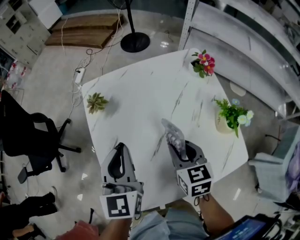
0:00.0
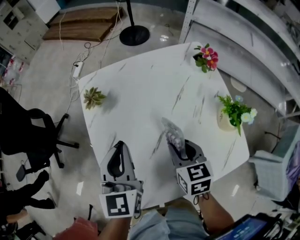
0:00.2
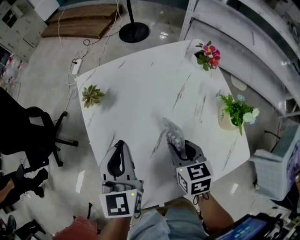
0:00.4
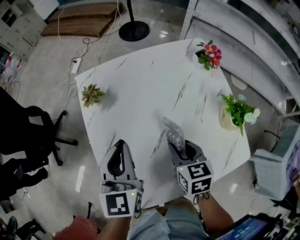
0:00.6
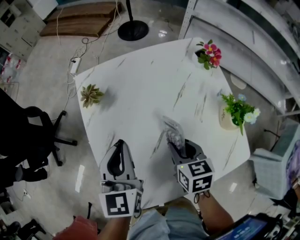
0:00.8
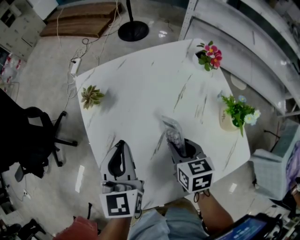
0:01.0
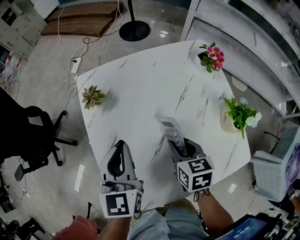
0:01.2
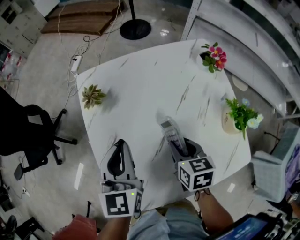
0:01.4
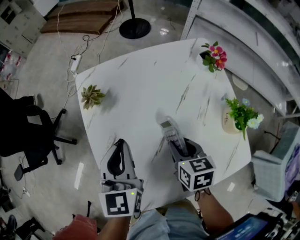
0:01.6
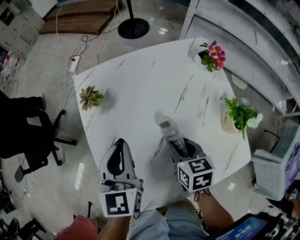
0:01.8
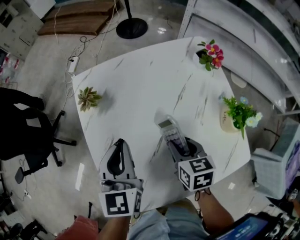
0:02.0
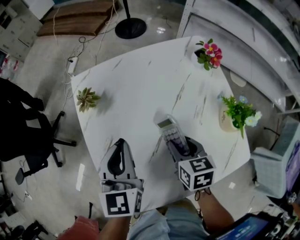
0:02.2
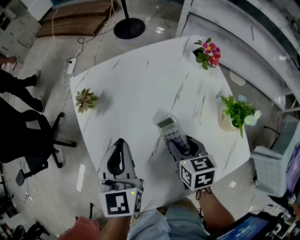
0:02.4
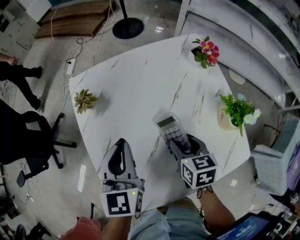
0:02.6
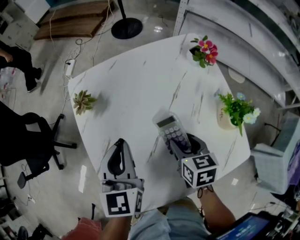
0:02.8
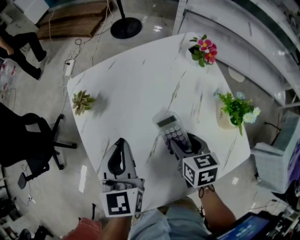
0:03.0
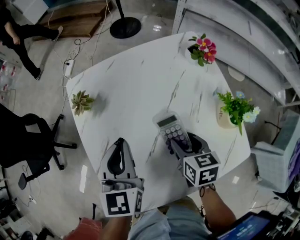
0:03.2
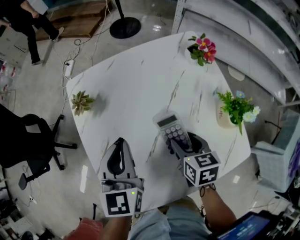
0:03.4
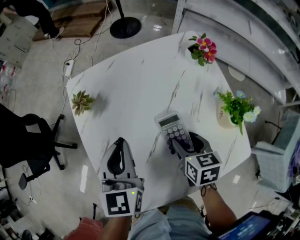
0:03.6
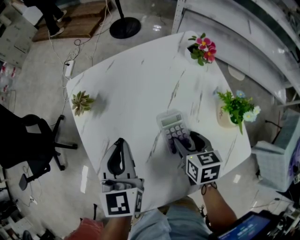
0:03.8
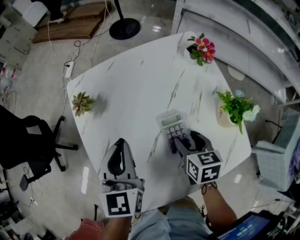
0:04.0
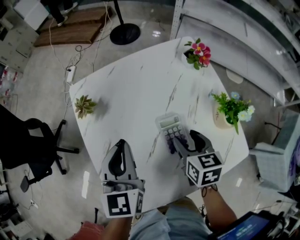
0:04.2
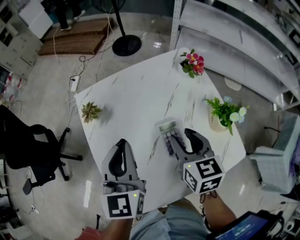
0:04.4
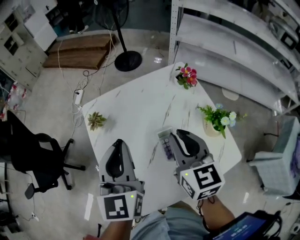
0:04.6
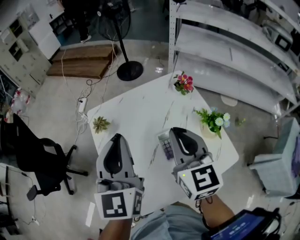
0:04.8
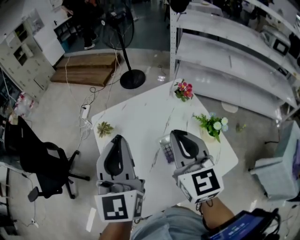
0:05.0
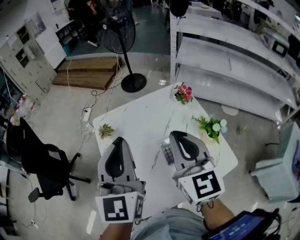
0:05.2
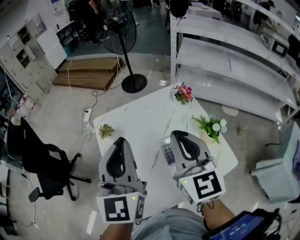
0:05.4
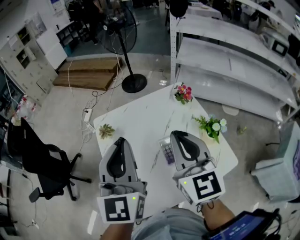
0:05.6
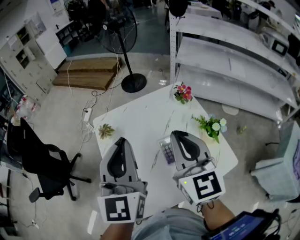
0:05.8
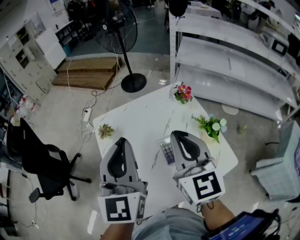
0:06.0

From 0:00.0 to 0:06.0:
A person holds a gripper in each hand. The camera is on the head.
From 0:00.0 to 0:01.6: The right gripper moves downward, approximately 5 cm, while the left gripper shifts by some 5 cm.
From 0:01.6 to 0:03.0: The right gripper opens.
From 0:03.0 to 0:04.4: The right gripper shifts about 10 cm upward. Meanwhile the left gripper moves upward, about 10 cm.
From 0:04.4 to 0:06.0: Both grippers travel together upward, some 20 cm. The right gripper changes its angle by some 30 degrees, and closes its fingers.

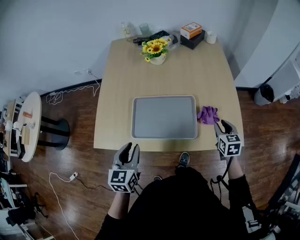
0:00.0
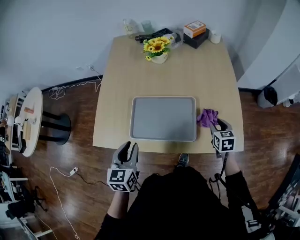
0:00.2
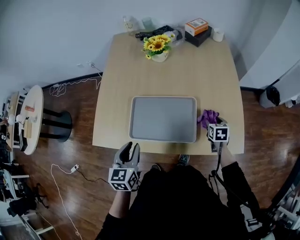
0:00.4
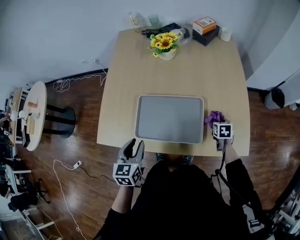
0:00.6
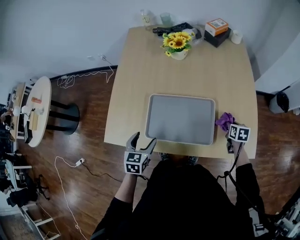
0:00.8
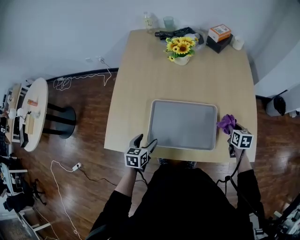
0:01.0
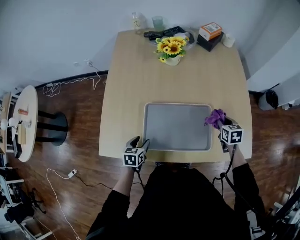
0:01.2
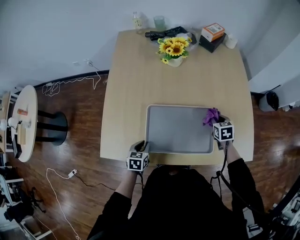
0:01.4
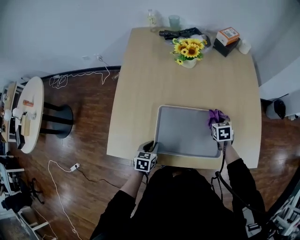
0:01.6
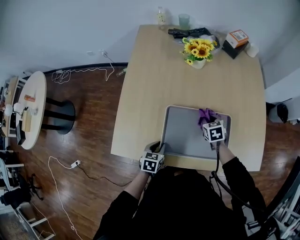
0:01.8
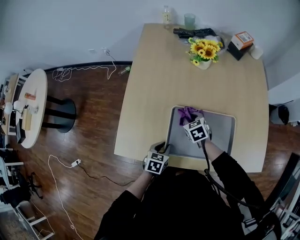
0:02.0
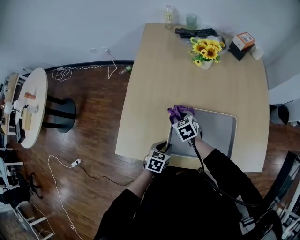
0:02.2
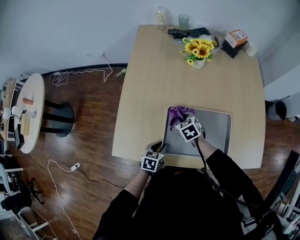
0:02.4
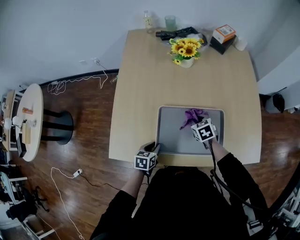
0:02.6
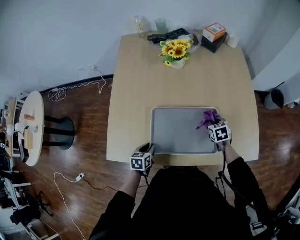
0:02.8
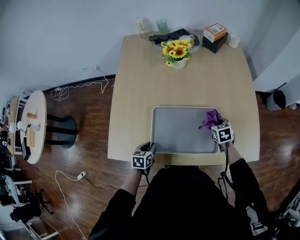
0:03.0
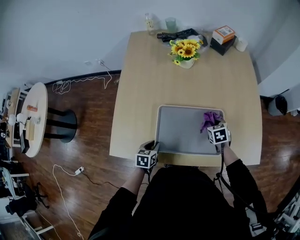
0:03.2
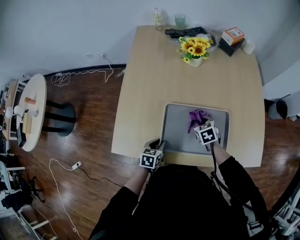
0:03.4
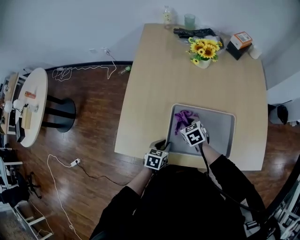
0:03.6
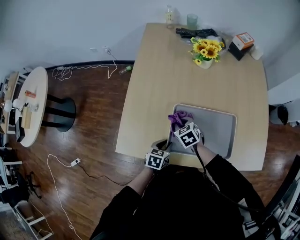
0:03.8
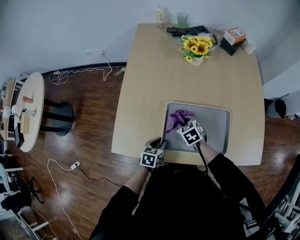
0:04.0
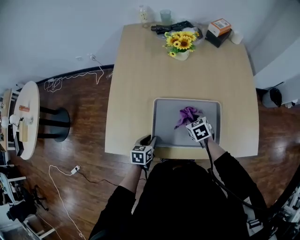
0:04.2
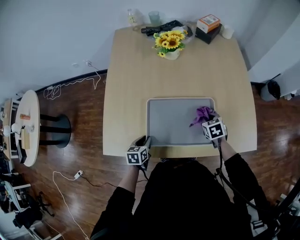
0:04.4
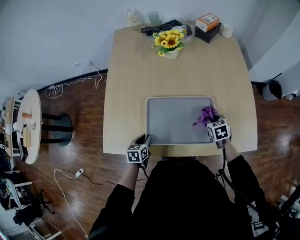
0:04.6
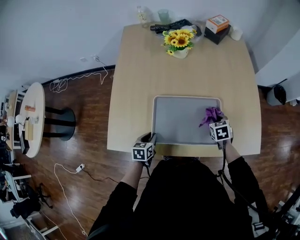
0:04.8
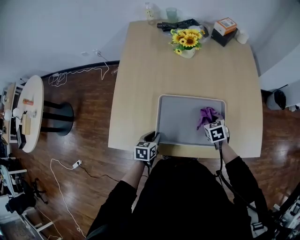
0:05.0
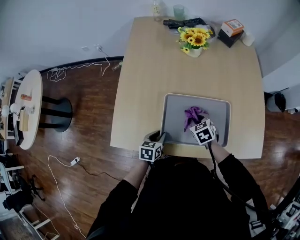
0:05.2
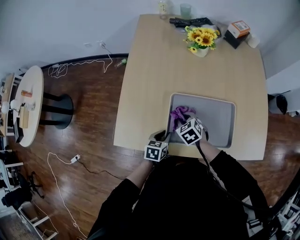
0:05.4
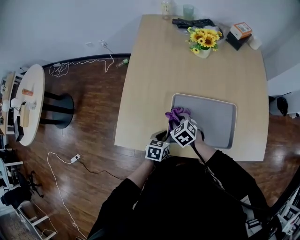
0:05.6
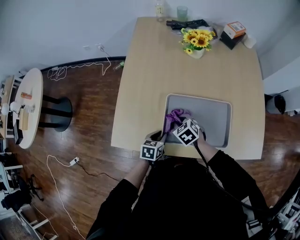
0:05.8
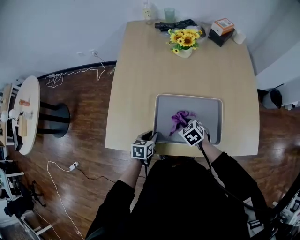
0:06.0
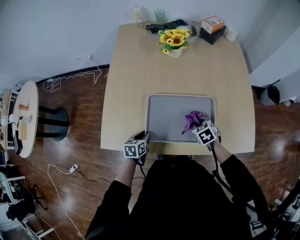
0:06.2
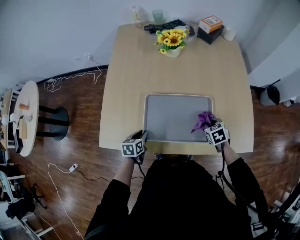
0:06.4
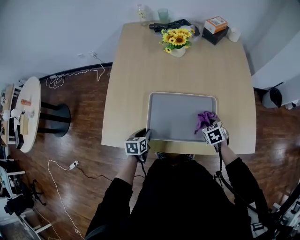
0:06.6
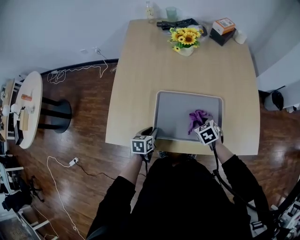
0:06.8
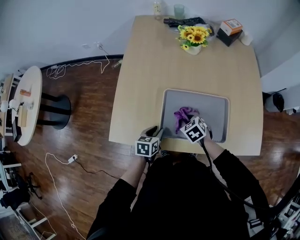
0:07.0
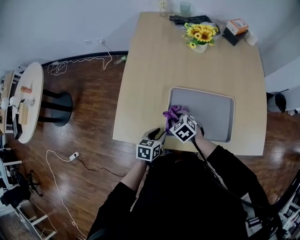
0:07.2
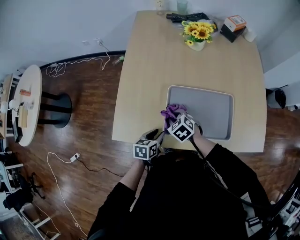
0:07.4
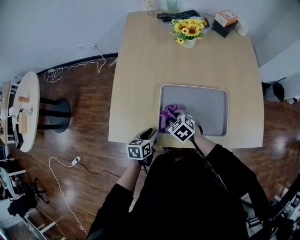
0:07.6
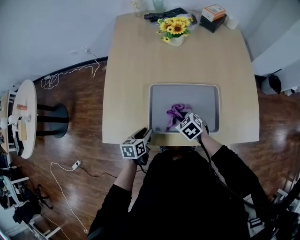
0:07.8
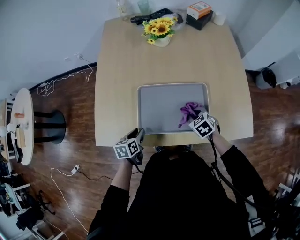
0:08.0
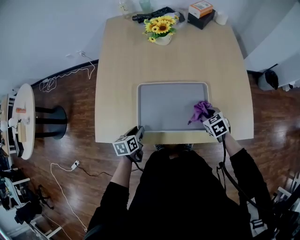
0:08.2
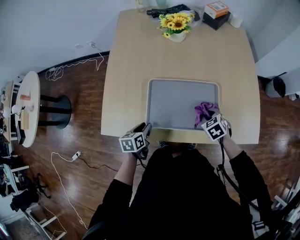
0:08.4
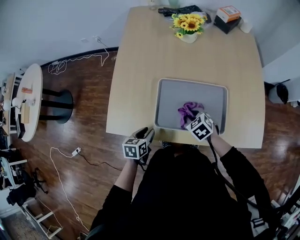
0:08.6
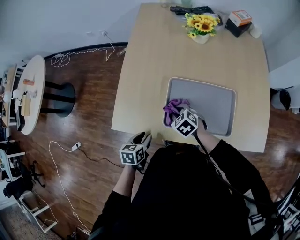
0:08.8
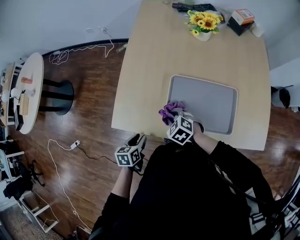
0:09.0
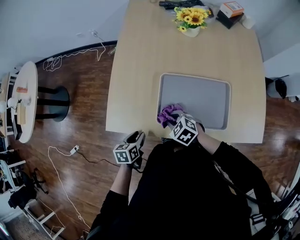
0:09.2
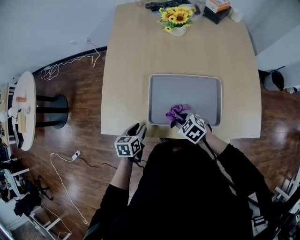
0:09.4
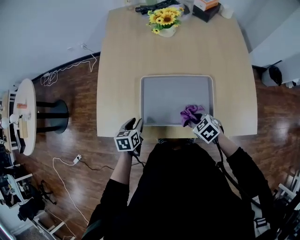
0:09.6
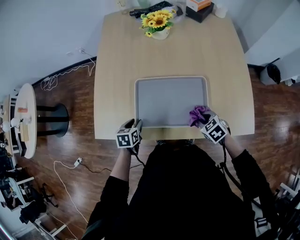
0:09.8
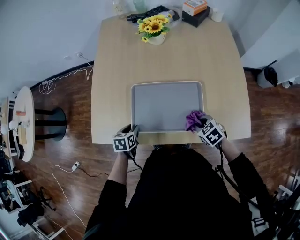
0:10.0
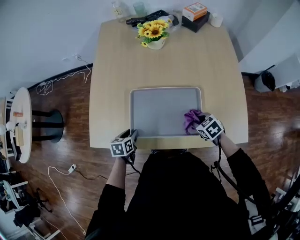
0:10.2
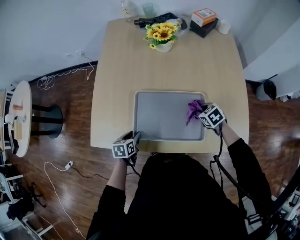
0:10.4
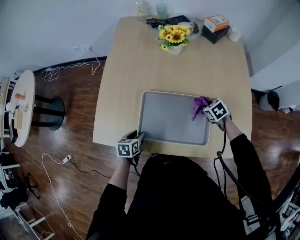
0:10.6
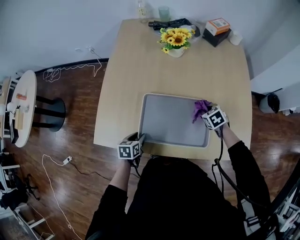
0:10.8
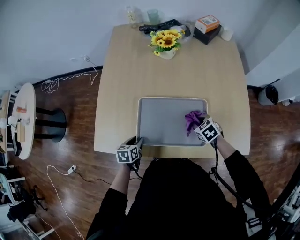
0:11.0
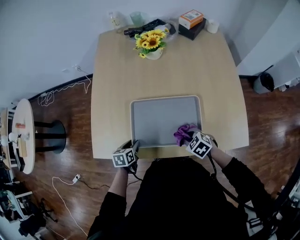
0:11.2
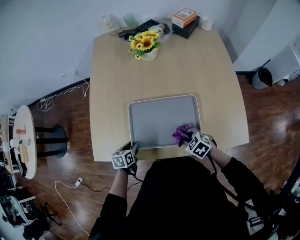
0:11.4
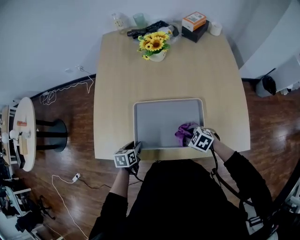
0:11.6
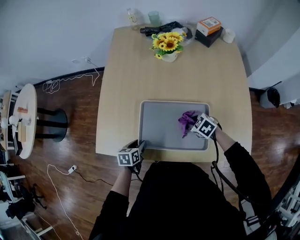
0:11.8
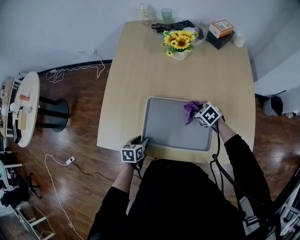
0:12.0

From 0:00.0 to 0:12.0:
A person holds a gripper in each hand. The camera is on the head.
From 0:00.0 to 0:01.6: The left gripper is displaced downward and forward by some 25 cm, changes its angle by roughly 30 degrees, and opens, then closes once more. Meanwhile the right gripper travels forward, to the left and downward by some 25 cm, and opens and closes again.
From 0:01.6 to 0:03.0: The right gripper moves approximately 30 cm to the left and comes back.
From 0:03.0 to 0:04.4: The right gripper goes to the left and returns, some 30 cm each way.
From 0:04.4 to 0:06.0: The right gripper travels to the left by roughly 20 cm, and changes its angle by roughly 20 degrees.
From 0:06.0 to 0:07.6: The right gripper moves about 20 cm to the right and comes back.
From 0:07.6 to 0:09.0: The left gripper is displaced to the left and backward by roughly 10 cm; the right gripper goes to the right and returns, roughly 30 cm each way.
From 0:09.0 to 0:10.4: The left gripper is displaced to the right and forward by some 15 cm, while the right gripper heads to the right, covering about 35 cm, and swivels about 30 degrees.
From 0:10.4 to 0:12.0: The right gripper goes forward and backward, about 15 cm each way, reversing 2 times.

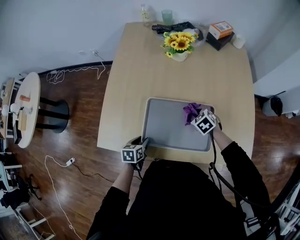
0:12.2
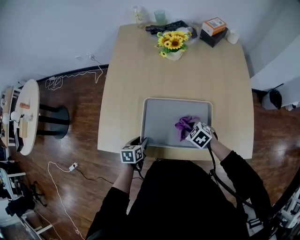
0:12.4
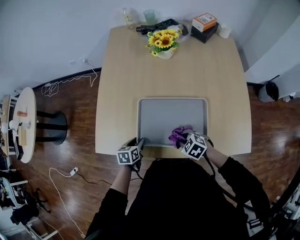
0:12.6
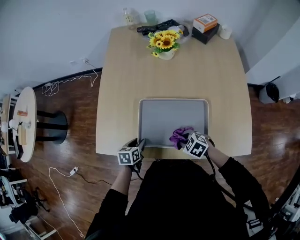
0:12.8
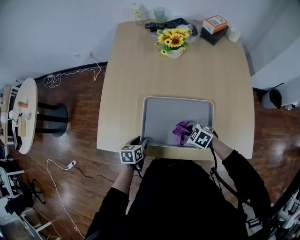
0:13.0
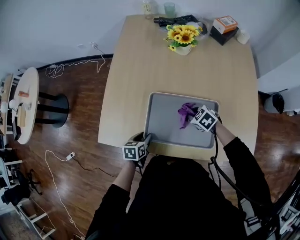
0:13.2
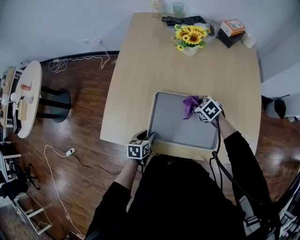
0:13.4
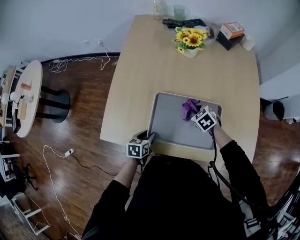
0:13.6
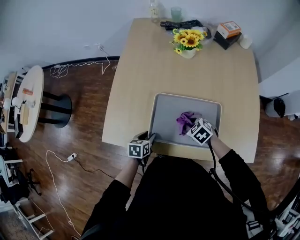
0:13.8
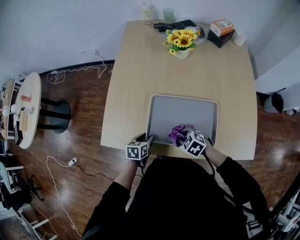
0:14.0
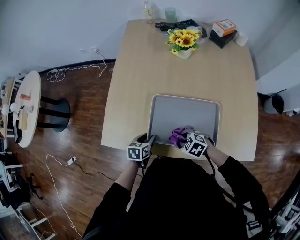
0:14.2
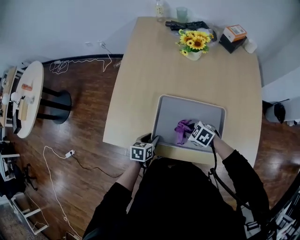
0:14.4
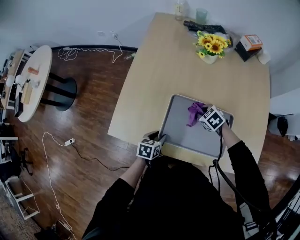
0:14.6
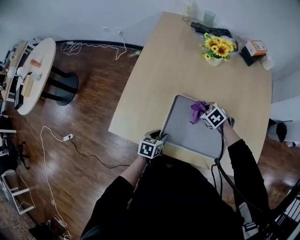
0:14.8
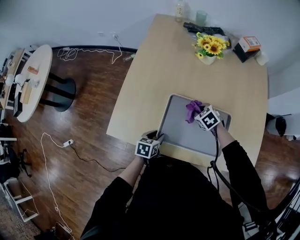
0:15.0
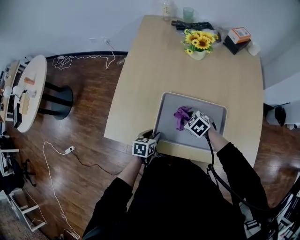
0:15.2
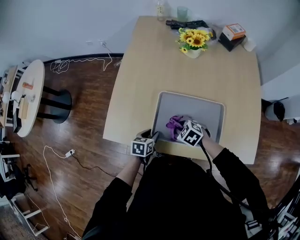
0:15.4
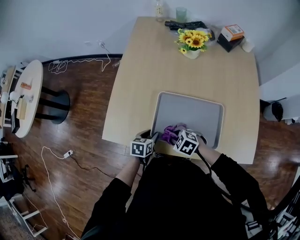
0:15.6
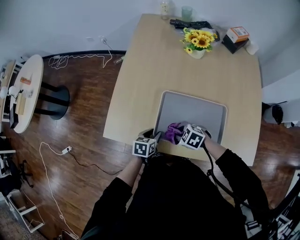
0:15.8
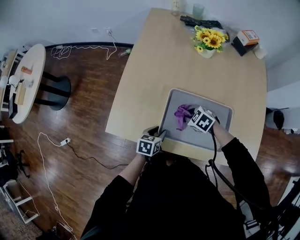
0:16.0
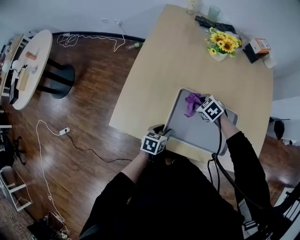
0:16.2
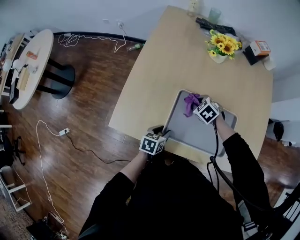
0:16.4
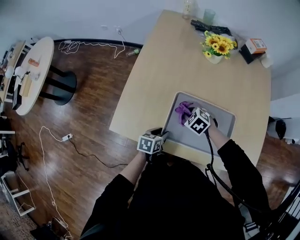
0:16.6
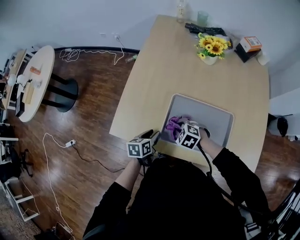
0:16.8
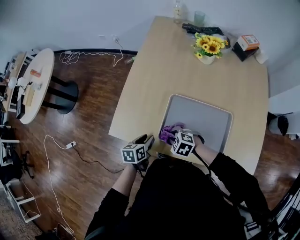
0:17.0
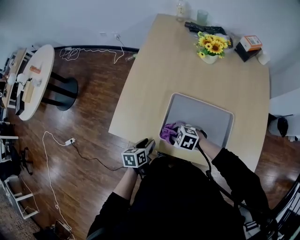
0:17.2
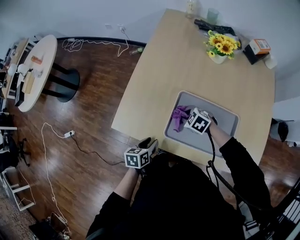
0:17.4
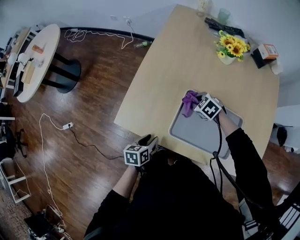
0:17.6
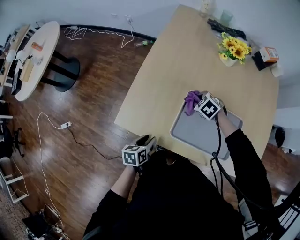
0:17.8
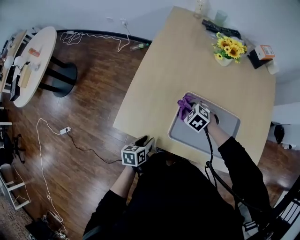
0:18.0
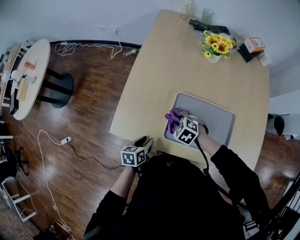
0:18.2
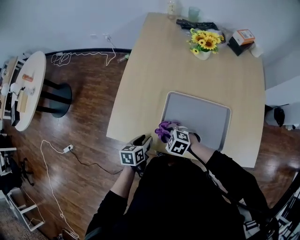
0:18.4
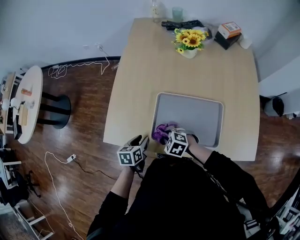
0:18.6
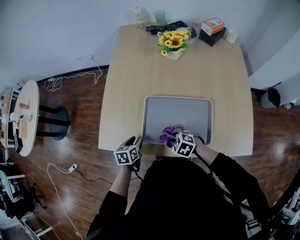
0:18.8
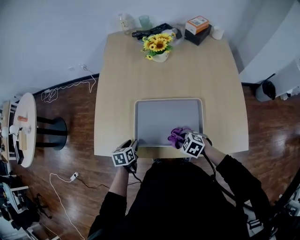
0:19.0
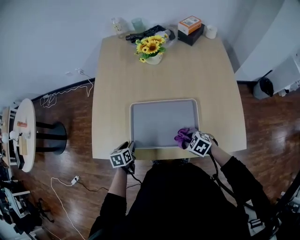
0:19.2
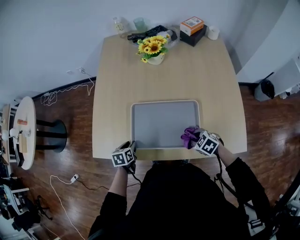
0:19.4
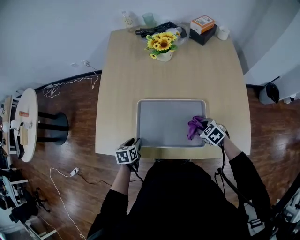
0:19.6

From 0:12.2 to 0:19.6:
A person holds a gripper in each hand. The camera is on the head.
From 0:12.2 to 0:13.6: The right gripper goes backward and returns, roughly 15 cm each way.
From 0:13.6 to 0:15.2: The right gripper goes forward and backward, about 20 cm each way, reversing 2 times.
From 0:15.2 to 0:16.6: The right gripper moves forward and backward over roughly 20 cm, changing direction 2 times.
From 0:16.6 to 0:18.2: The left gripper shifts by about 10 cm.
From 0:18.2 to 0:19.6: The left gripper travels to the right by roughly 10 cm, while the right gripper travels to the right and backward by approximately 30 cm, and swivels approximately 30 degrees.
